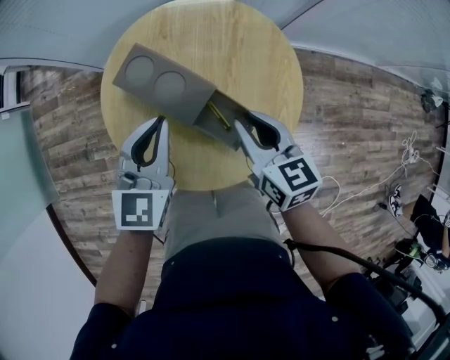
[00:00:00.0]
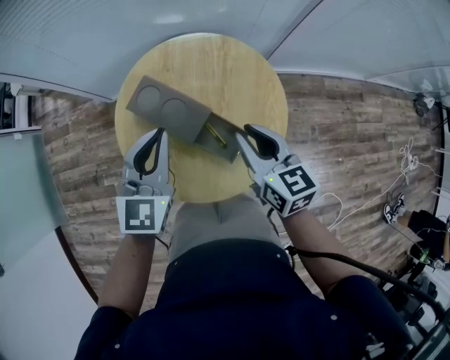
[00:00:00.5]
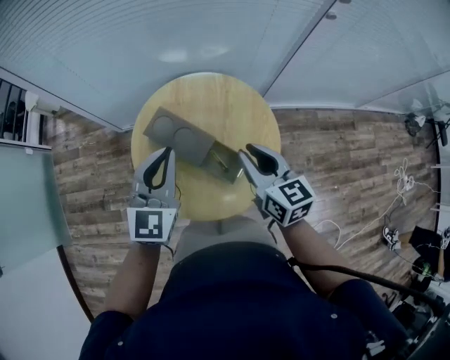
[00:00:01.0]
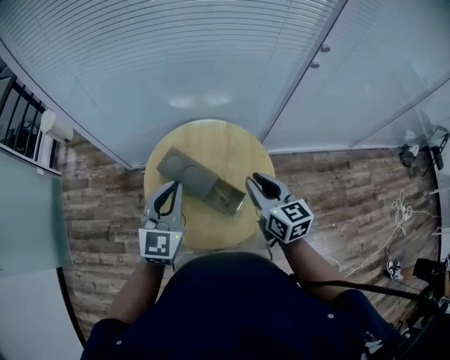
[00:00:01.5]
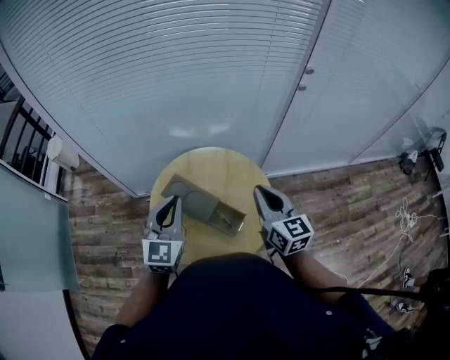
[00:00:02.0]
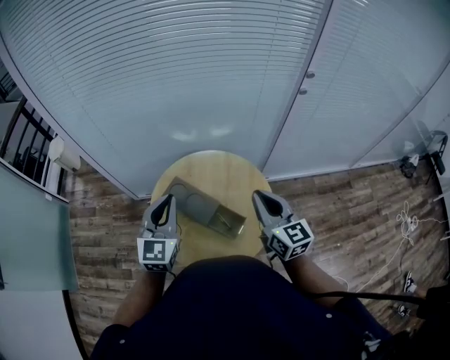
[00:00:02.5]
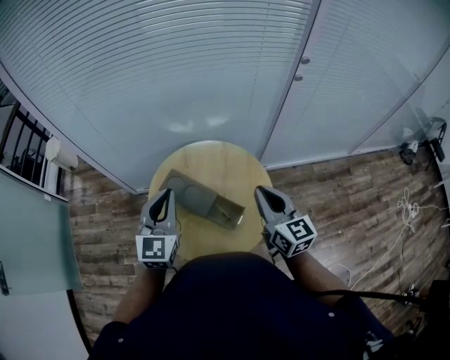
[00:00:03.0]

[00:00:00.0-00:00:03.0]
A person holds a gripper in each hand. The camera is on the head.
00:00:00.0 to 00:00:01.5: Both grippers move upward, some 20 cm.
00:00:01.5 to 00:00:03.0: The right gripper ends up roughly 5 cm from where it was.

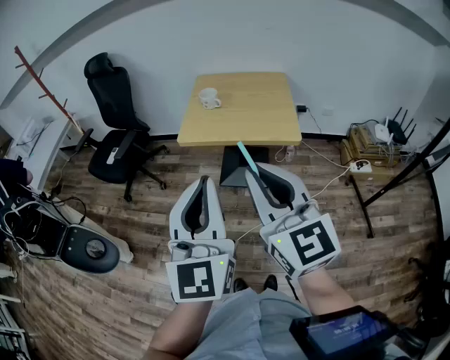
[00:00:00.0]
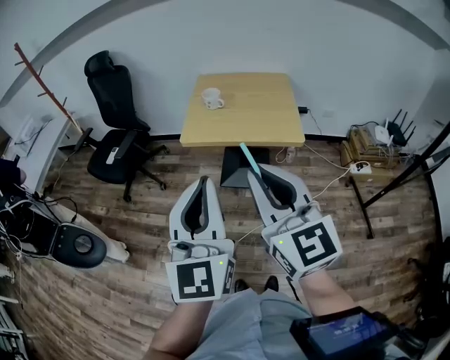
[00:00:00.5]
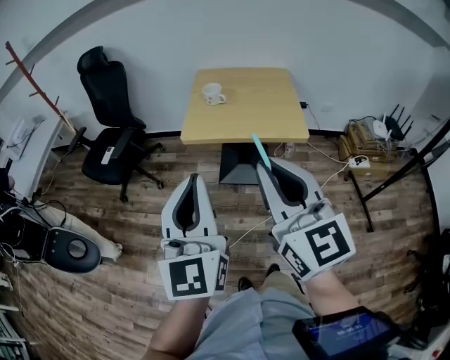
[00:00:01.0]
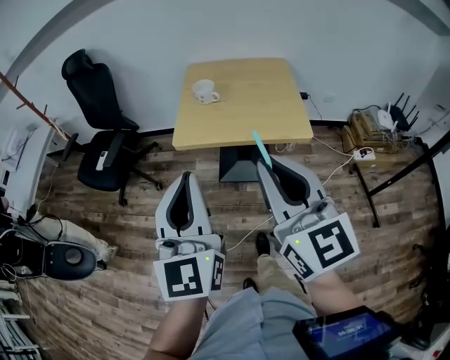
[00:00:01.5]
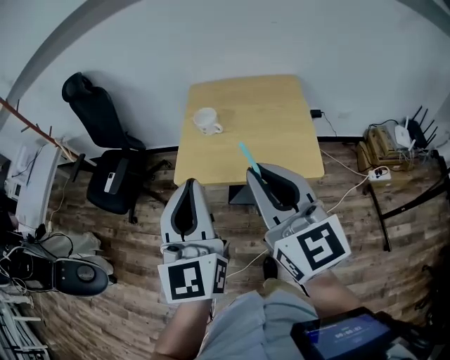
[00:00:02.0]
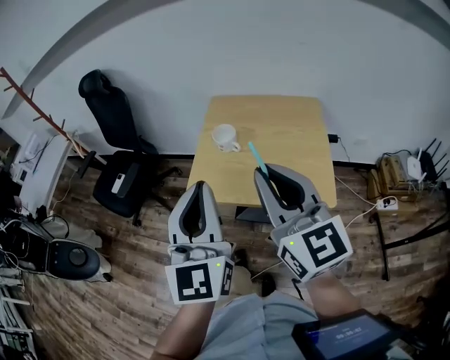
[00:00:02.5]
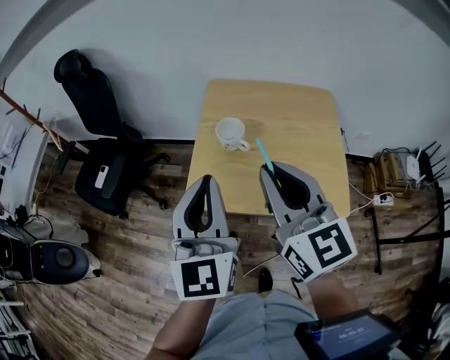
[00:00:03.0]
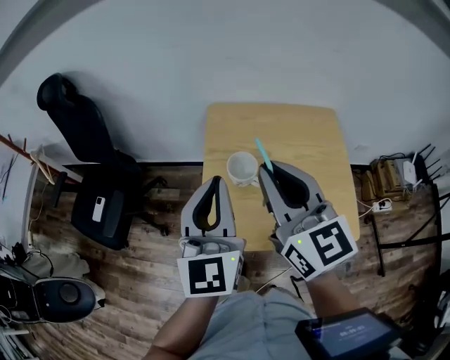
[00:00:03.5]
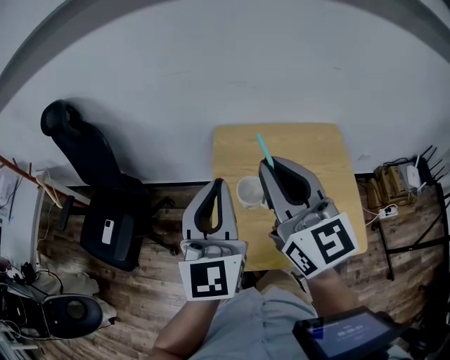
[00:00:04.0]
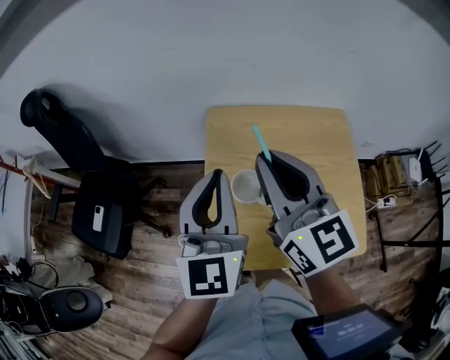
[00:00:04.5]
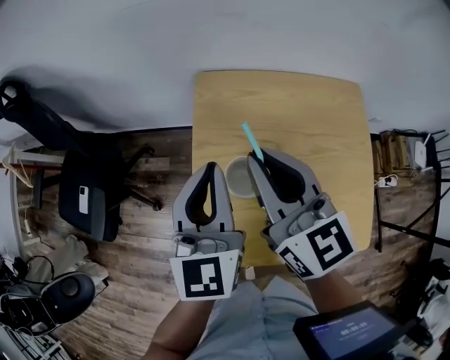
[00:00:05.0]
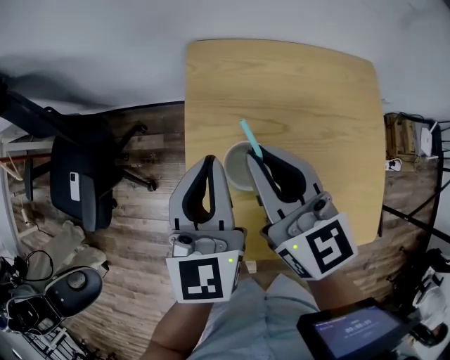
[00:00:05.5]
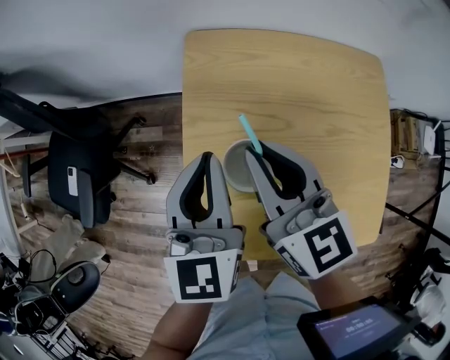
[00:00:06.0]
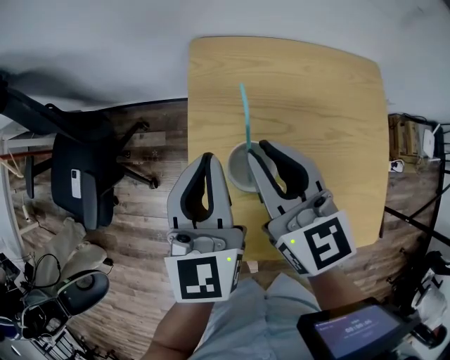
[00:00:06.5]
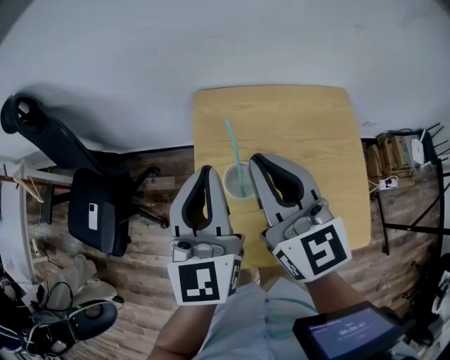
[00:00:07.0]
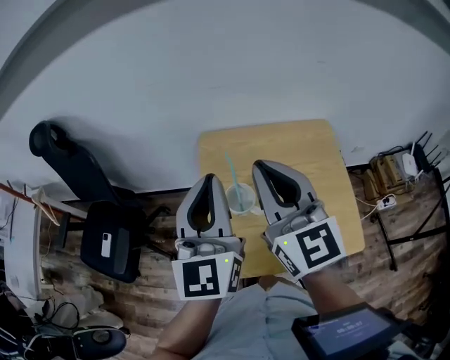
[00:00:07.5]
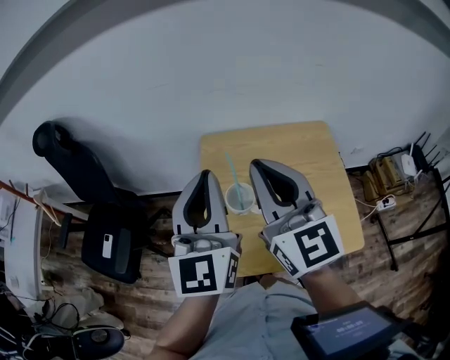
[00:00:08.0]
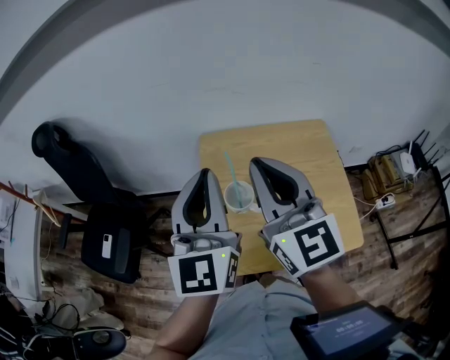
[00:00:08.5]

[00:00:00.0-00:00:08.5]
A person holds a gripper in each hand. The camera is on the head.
00:00:00.0 to 00:00:02.0: The grippers both shift forward by about 25 cm.
00:00:02.0 to 00:00:04.0: The grippers both shift forward by some 35 cm.
00:00:04.0 to 00:00:06.5: Both grippers travel together downward and forward, approximately 30 cm. The right gripper rotates approximately 30 degrees. The left gripper rotates roughly 30 degrees.
00:00:06.5 to 00:00:08.5: The grippers both shift upward and backward by roughly 30 cm. The left gripper turns by approximately 30 degrees. Meanwhile the right gripper swivels about 30 degrees.

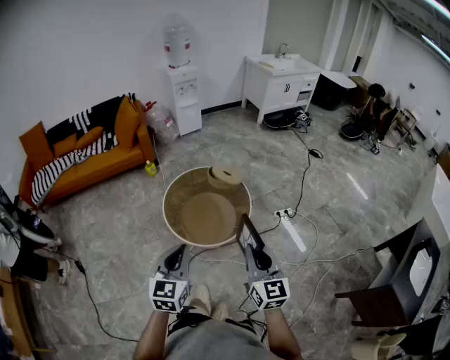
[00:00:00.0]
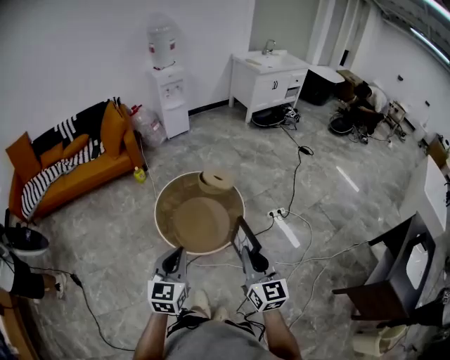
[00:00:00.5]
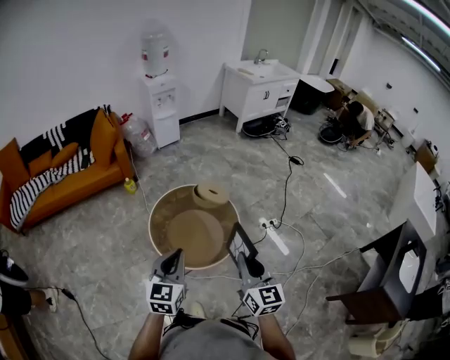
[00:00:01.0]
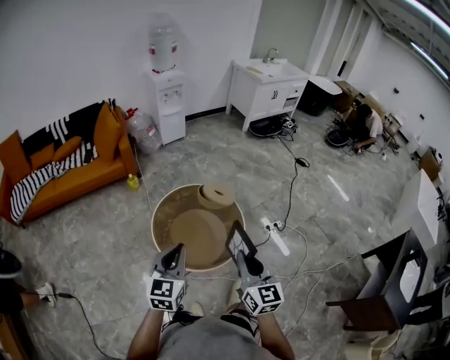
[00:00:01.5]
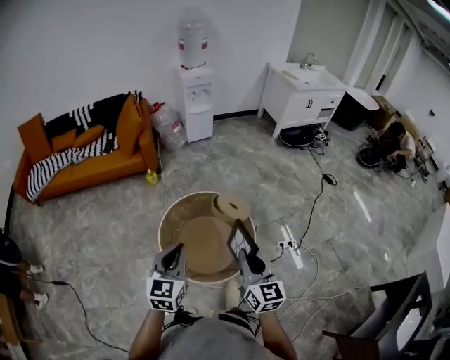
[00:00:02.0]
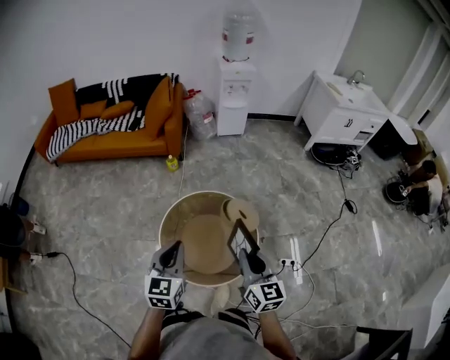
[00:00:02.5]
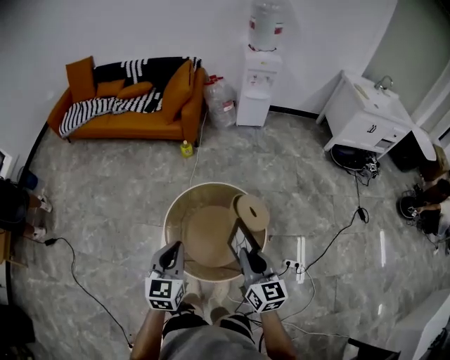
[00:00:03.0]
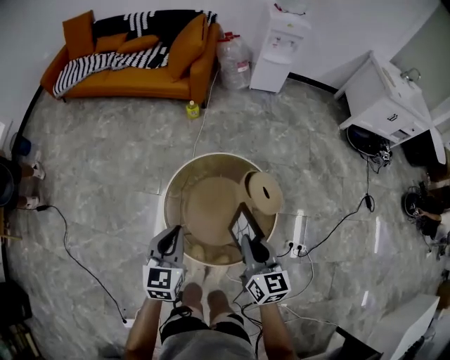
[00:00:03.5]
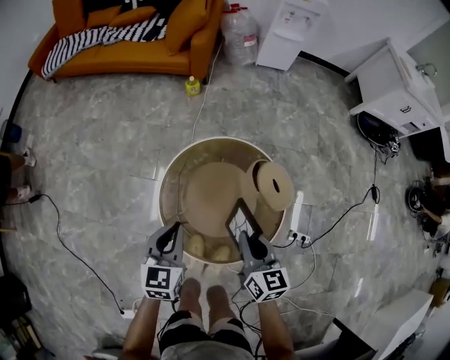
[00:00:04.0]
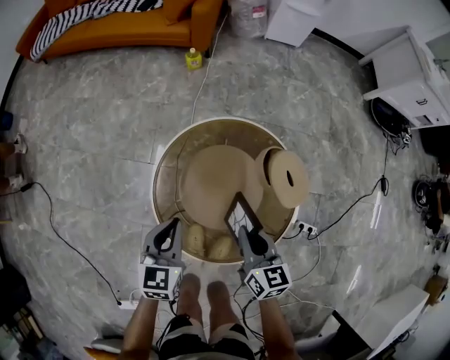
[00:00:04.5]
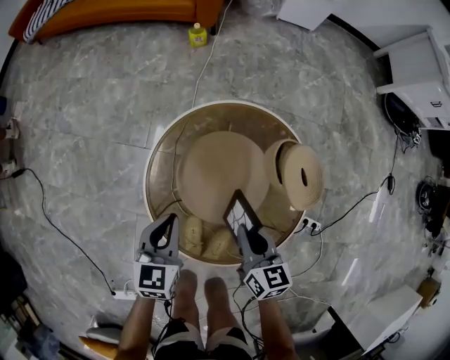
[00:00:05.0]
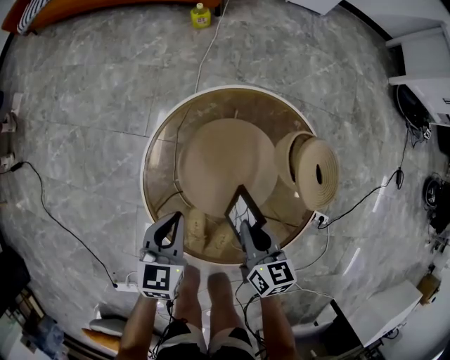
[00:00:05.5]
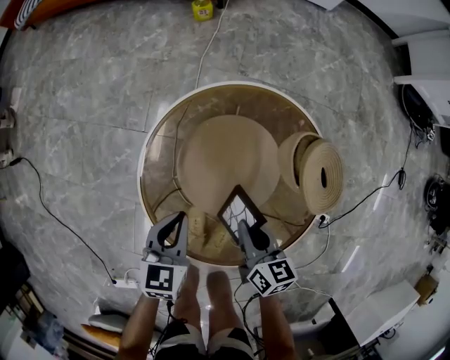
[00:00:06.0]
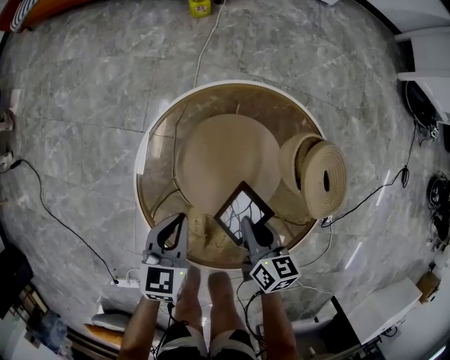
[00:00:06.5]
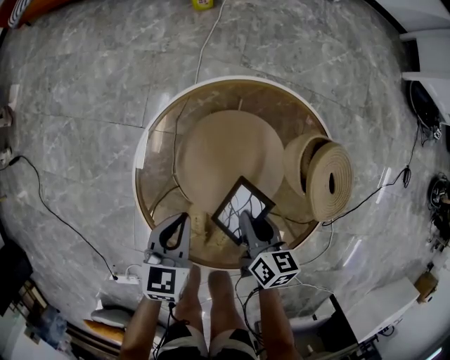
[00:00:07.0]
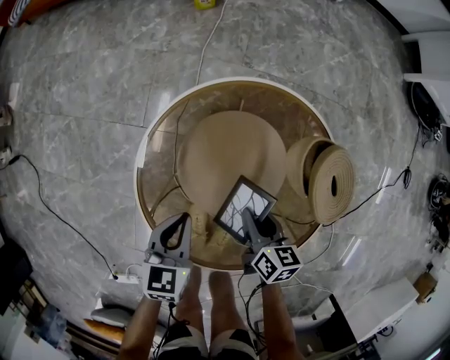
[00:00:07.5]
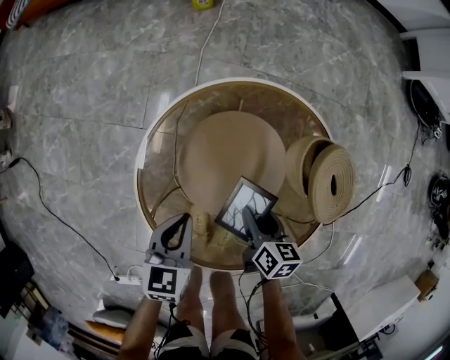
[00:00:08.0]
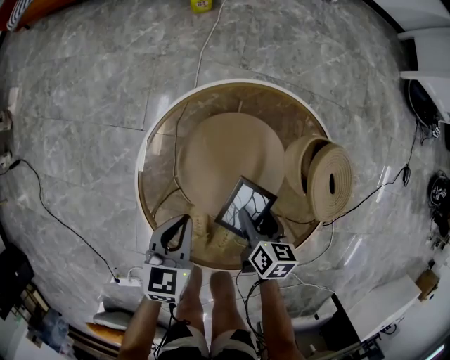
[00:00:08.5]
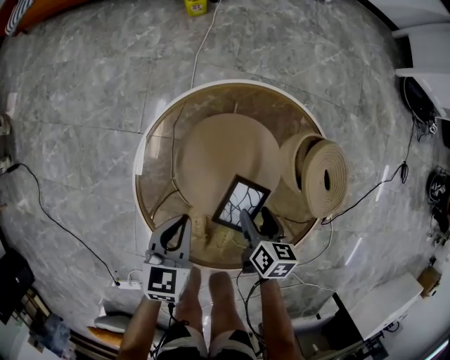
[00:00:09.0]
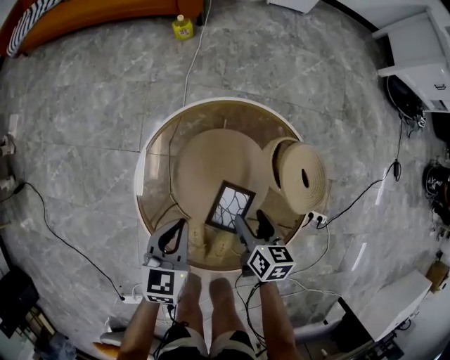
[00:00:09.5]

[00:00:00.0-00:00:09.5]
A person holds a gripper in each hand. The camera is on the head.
00:00:00.0 to 00:00:02.0: The grippers both shift forward by some 30 cm.
00:00:02.0 to 00:00:04.0: The grippers both shift downward by about 25 cm. The right gripper turns by approximately 30 degrees; the left gripper swivels roughly 30 degrees.
00:00:04.0 to 00:00:05.5: Both grippers move downward, about 25 cm.
00:00:05.5 to 00:00:07.5: The left gripper travels downward by some 5 cm; the right gripper shifts some 10 cm downward.
00:00:07.5 to 00:00:09.5: The two grippers go approximately 5 cm upward. The right gripper opens its fingers.

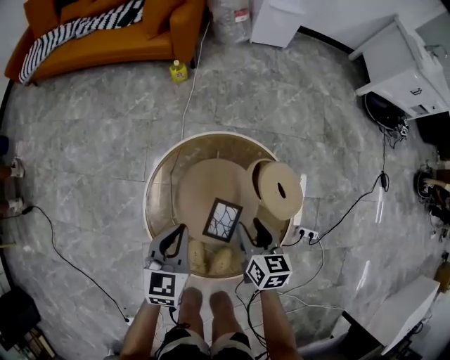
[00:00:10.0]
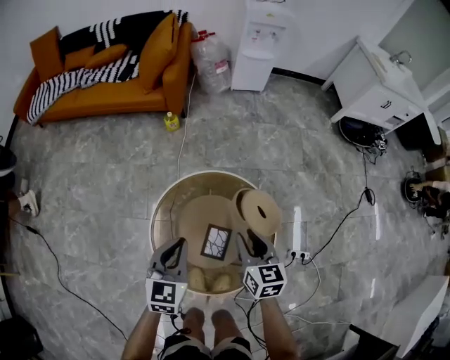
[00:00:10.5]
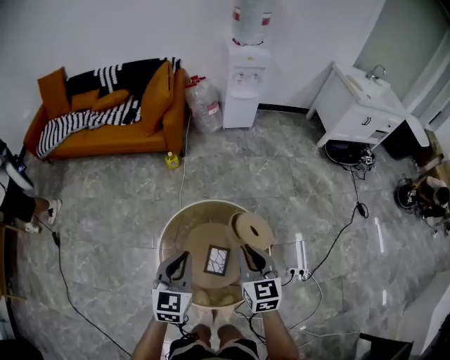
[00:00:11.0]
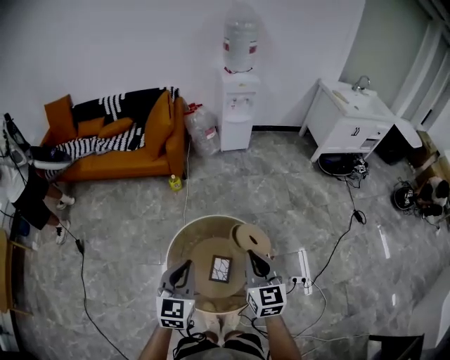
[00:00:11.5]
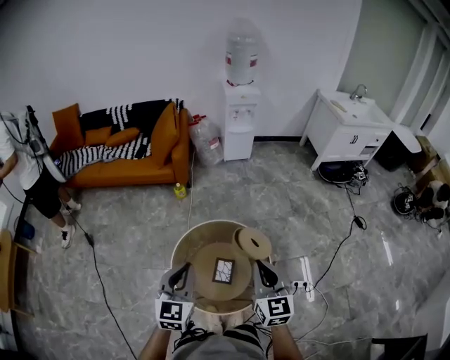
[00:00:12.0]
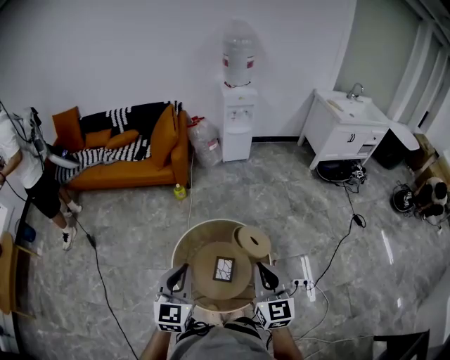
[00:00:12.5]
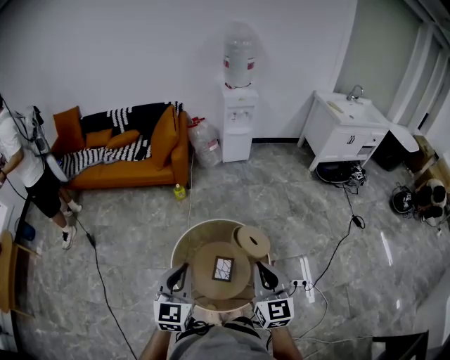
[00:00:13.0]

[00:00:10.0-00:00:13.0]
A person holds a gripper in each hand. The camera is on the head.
00:00:10.0 to 00:00:11.5: Both grippers travel together upward, about 40 cm. The right gripper rotates approximately 30 degrees, and closes up.
00:00:11.5 to 00:00:13.0: The grippers both shift backward and upward by some 10 cm.

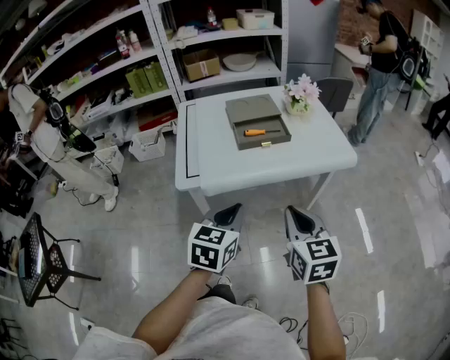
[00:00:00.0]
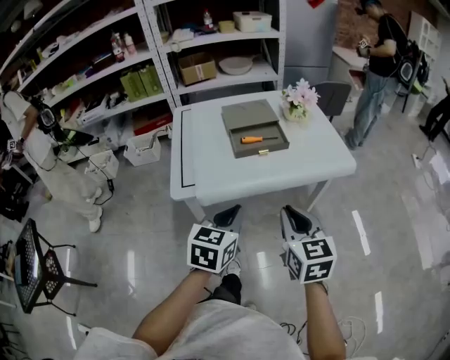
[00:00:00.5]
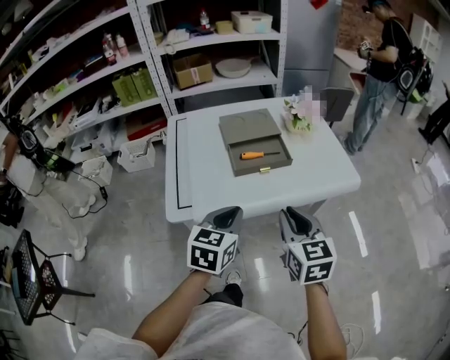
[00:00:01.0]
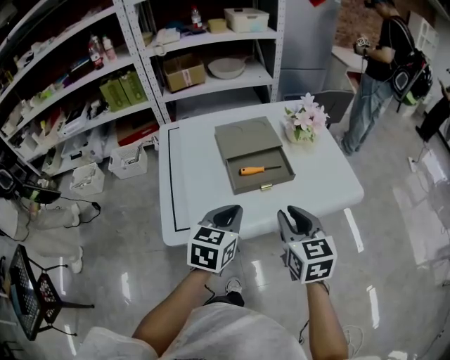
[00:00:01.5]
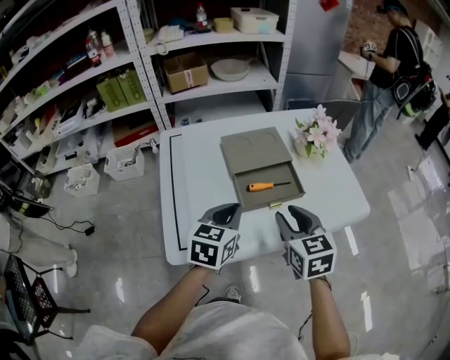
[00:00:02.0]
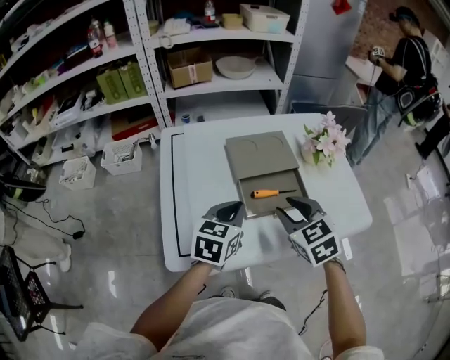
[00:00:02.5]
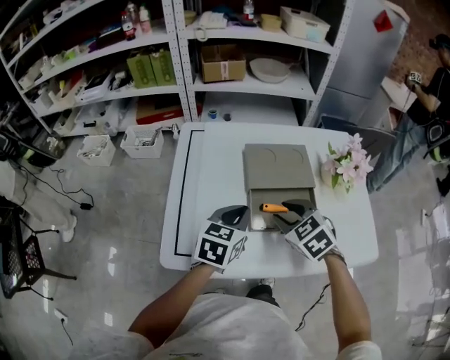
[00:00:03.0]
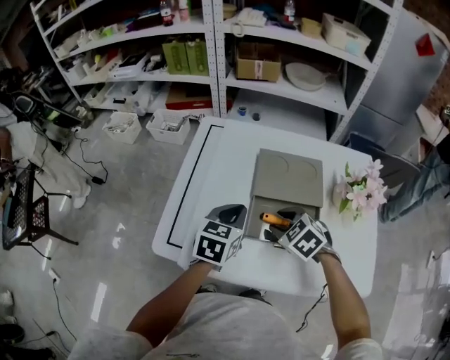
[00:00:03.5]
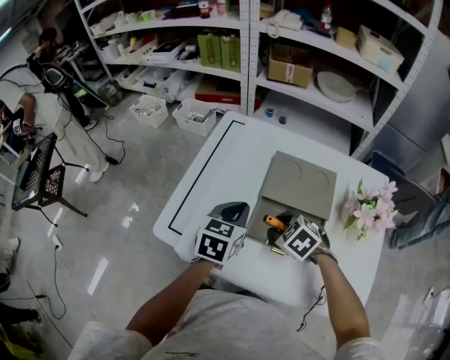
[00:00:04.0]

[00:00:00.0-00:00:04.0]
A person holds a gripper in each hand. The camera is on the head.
00:00:00.0 to 00:00:02.0: Both grippers travel together forward, approximately 30 cm. The right gripper opens.
00:00:02.0 to 00:00:04.0: The right gripper goes about 15 cm downward, and points its fingers approximately 30 degrees further downward. Meanwhile the left gripper shifts by about 10 cm, and changes its angle by about 30 degrees.
